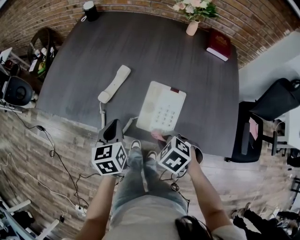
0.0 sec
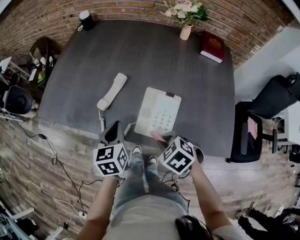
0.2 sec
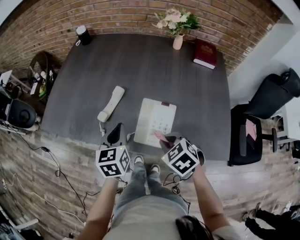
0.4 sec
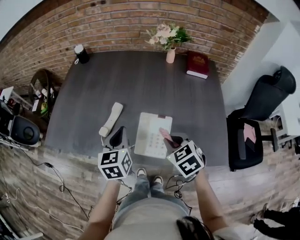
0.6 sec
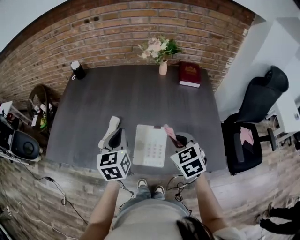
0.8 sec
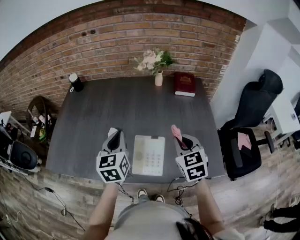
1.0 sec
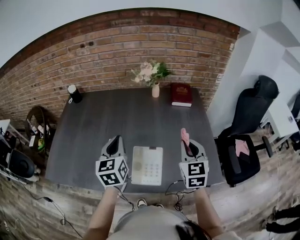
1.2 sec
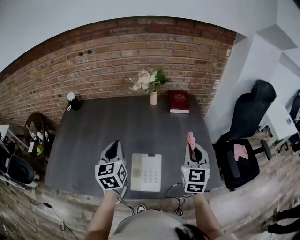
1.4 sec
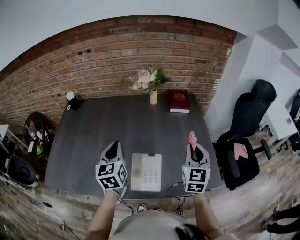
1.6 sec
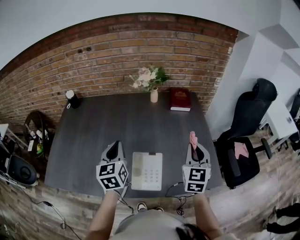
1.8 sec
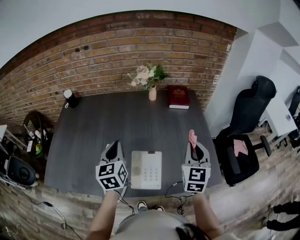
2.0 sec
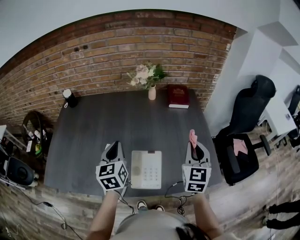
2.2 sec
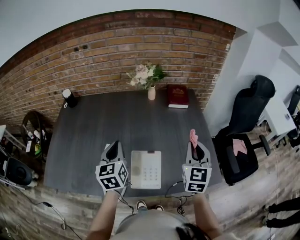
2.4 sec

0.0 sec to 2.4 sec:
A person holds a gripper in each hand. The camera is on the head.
0.0 sec to 1.2 sec: The grippers both shift upward by roughly 20 cm. The left gripper changes its angle by roughly 30 degrees. The right gripper tips its fingers upward by roughly 60 degrees.
1.2 sec to 2.4 sec: The grippers stay close to where they were, moving slightly.

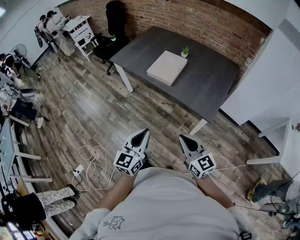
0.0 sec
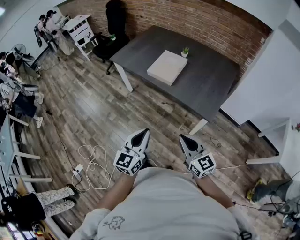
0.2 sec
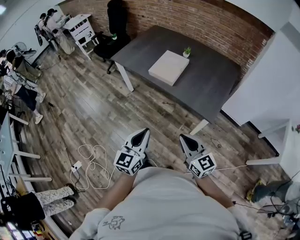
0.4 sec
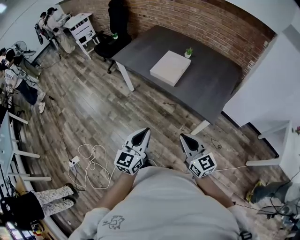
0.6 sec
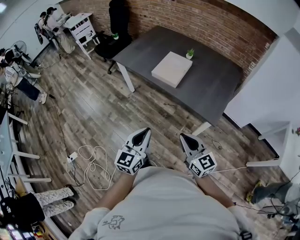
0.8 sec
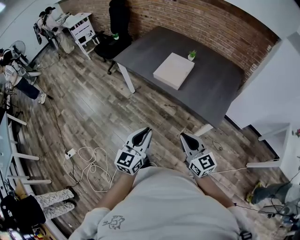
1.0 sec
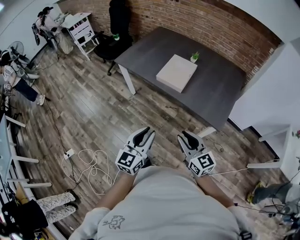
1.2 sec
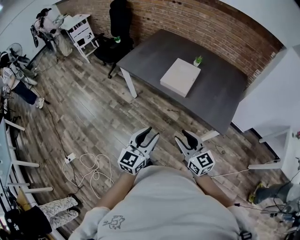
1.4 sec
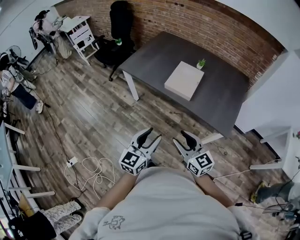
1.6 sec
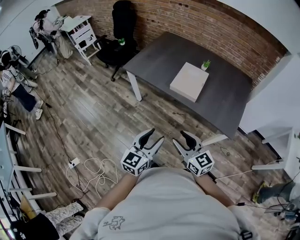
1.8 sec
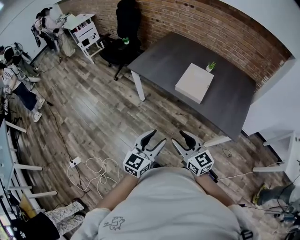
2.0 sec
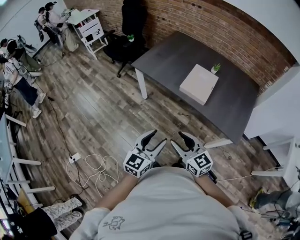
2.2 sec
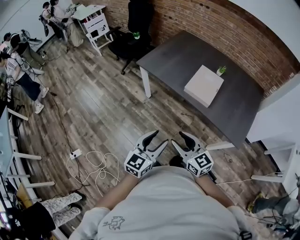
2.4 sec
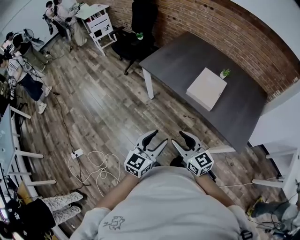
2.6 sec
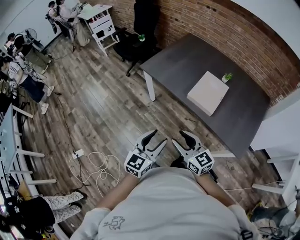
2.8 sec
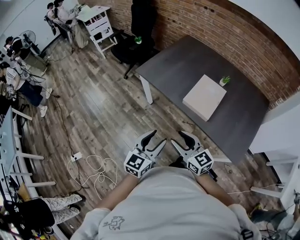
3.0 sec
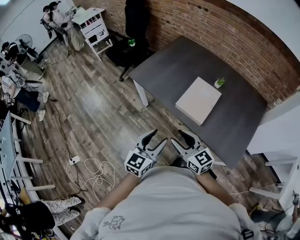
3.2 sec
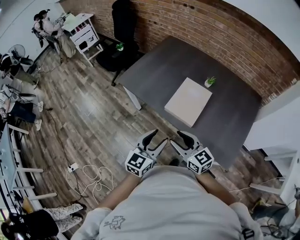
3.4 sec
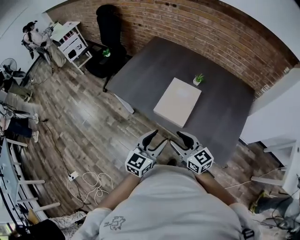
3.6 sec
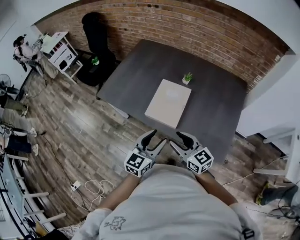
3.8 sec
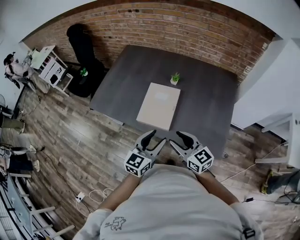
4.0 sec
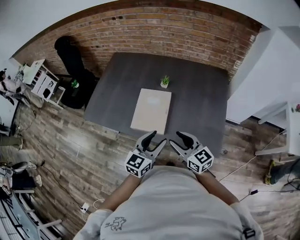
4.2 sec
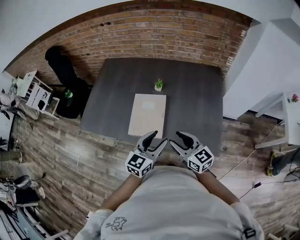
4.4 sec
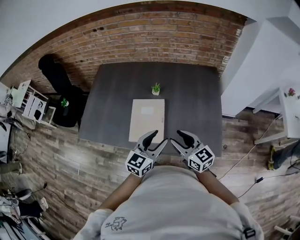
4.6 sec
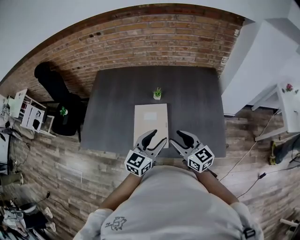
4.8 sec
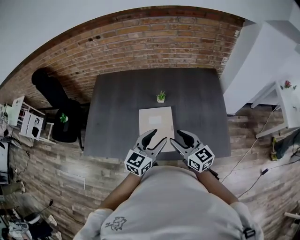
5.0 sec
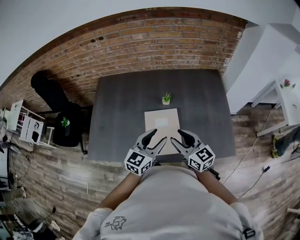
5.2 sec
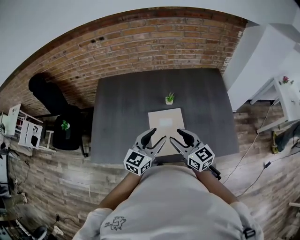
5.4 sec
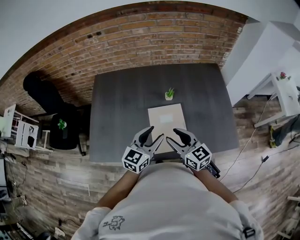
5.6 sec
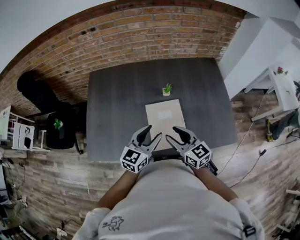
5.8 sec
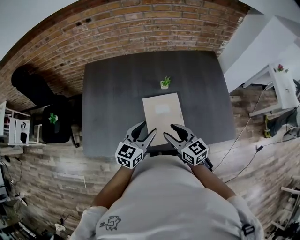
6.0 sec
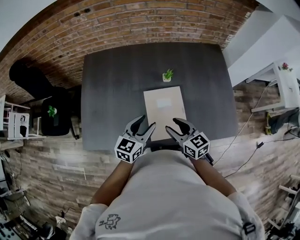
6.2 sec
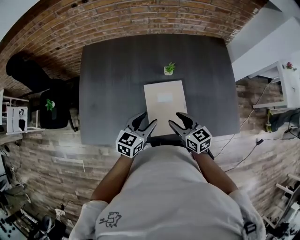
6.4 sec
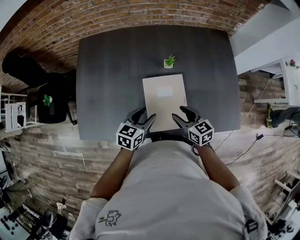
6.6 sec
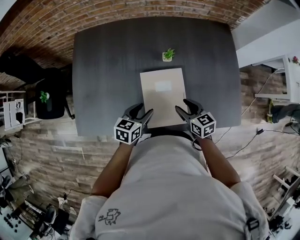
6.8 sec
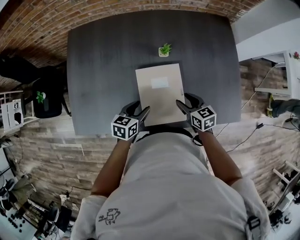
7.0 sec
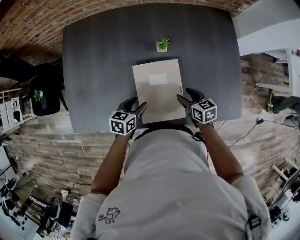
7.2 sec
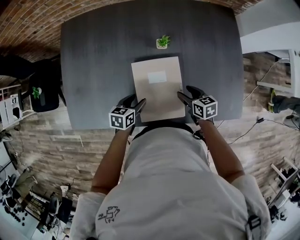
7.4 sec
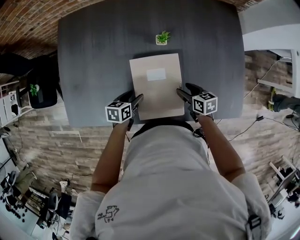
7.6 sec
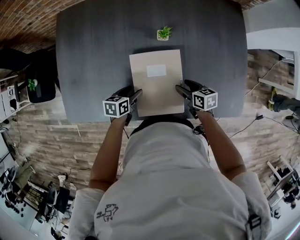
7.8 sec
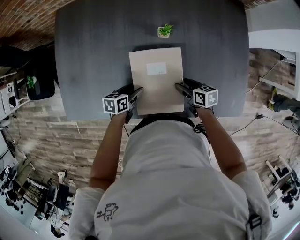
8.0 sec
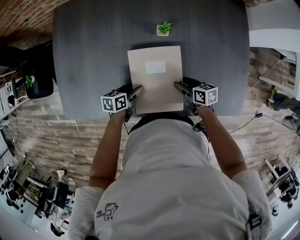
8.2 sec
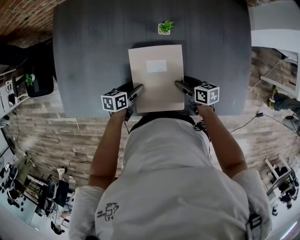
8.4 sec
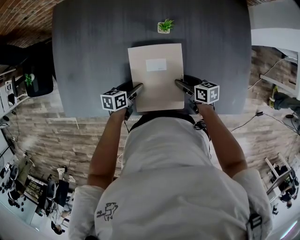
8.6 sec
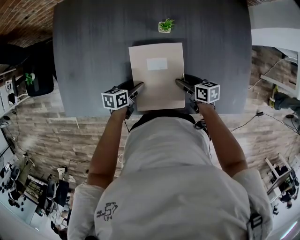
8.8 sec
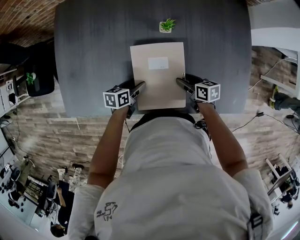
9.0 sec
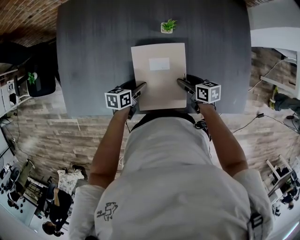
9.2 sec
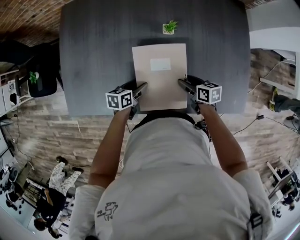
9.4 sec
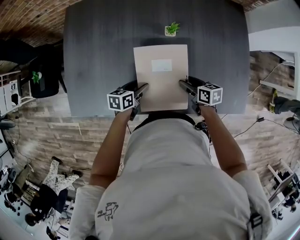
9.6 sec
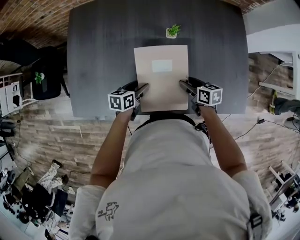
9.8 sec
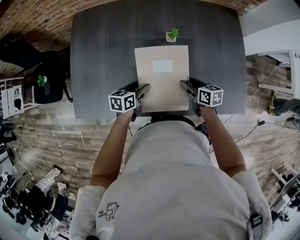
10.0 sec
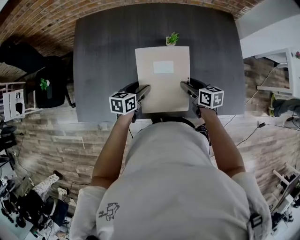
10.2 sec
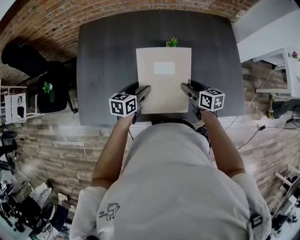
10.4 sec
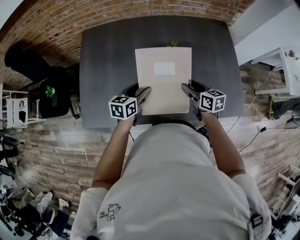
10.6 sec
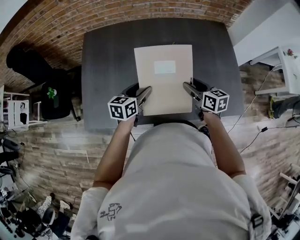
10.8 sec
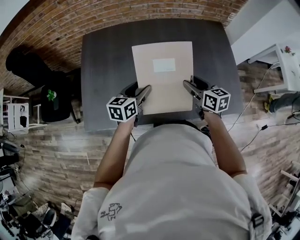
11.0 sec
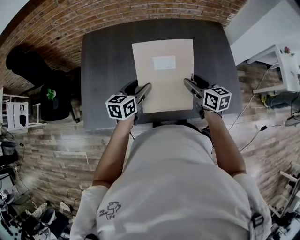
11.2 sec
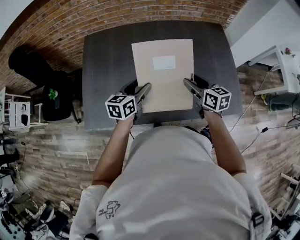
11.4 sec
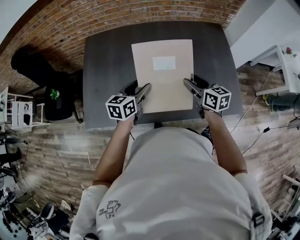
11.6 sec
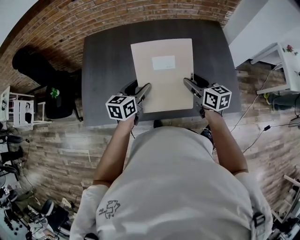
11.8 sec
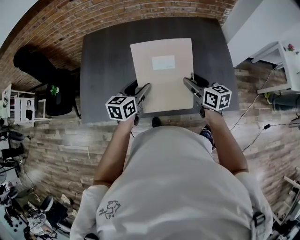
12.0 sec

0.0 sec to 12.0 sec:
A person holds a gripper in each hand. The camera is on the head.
0.0 sec to 1.6 sec: Both grippers move to the left and forward, approximately 20 cm. The left gripper opens, while the right gripper opens up.
1.6 sec to 3.0 sec: The right gripper is displaced forward and to the left by roughly 15 cm. The left gripper travels forward by roughly 15 cm.
3.0 sec to 4.4 sec: The left gripper ends up some 35 cm from where it was, and turns by approximately 30 degrees. Meanwhile the right gripper shifts by roughly 30 cm, and rotates roughly 30 degrees.
4.4 sec to 6.0 sec: The grippers both shift to the left and forward by roughly 25 cm.
6.0 sec to 7.6 sec: The right gripper goes approximately 25 cm downward and to the right, and rotates some 40 degrees. Meanwhile the left gripper travels downward by some 25 cm, and angles its fingers downward, by some 30 degrees.
7.6 sec to 9.0 sec: The grippers make only small movements.
9.0 sec to 10.4 sec: Both grippers travel together upward, approximately 15 cm. The left gripper turns by approximately 20 degrees.
10.4 sec to 12.0 sec: Both grippers travel together upward and to the right, about 15 cm.

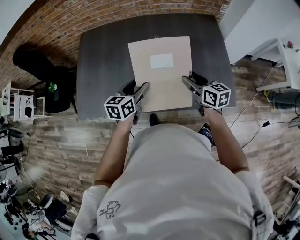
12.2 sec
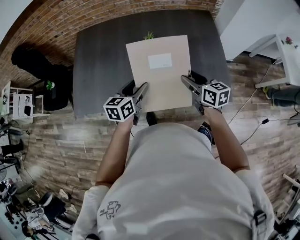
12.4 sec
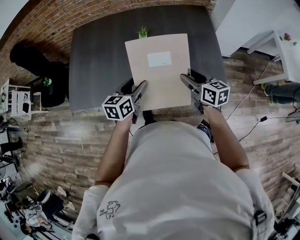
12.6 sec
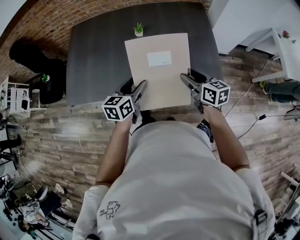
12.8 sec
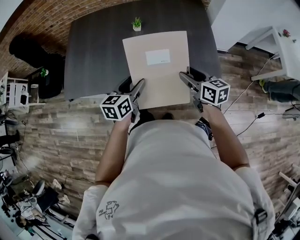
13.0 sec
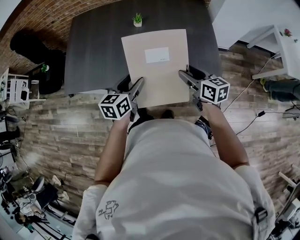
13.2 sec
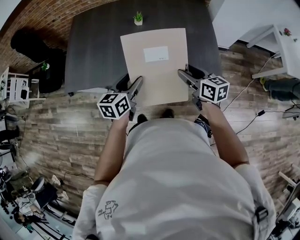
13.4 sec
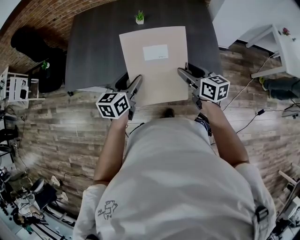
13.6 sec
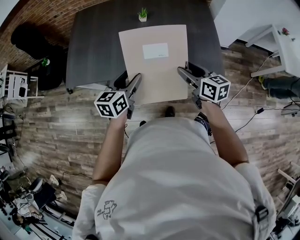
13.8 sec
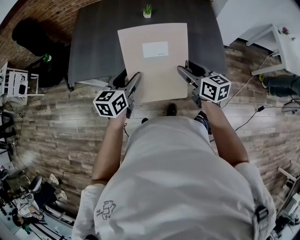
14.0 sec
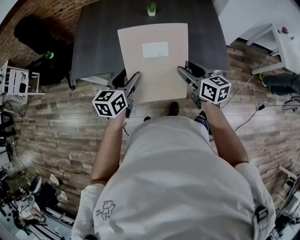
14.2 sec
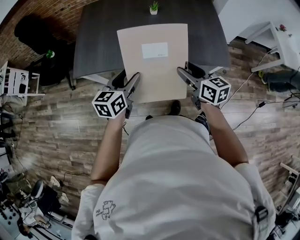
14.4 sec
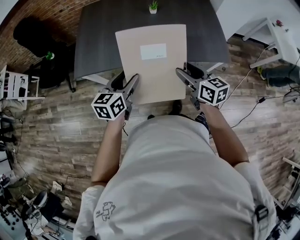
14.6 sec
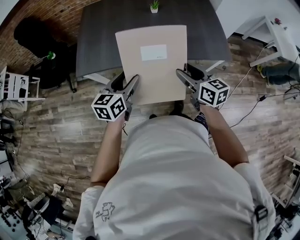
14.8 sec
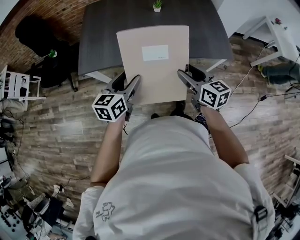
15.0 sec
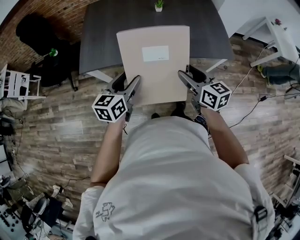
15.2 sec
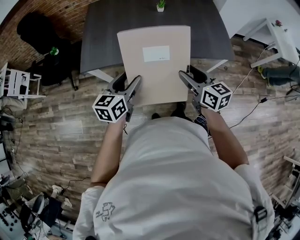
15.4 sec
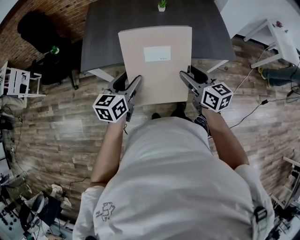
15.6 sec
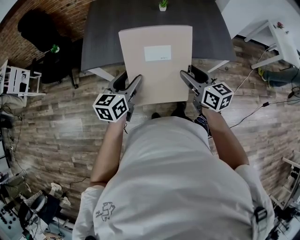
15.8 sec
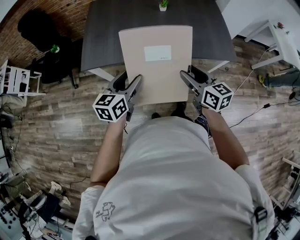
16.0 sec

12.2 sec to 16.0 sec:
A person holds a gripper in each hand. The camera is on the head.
12.2 sec to 13.4 sec: Both grippers travel together backward and to the right, some 15 cm.
13.4 sec to 14.8 sec: The grippers both shift to the left and backward by about 25 cm.
14.8 sec to 16.0 sec: The grippers make only small movements.

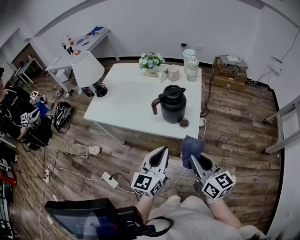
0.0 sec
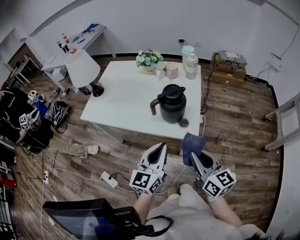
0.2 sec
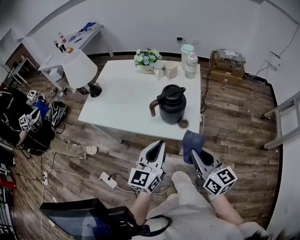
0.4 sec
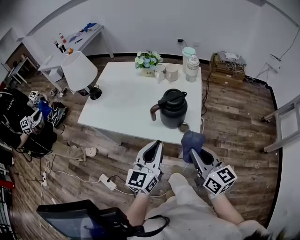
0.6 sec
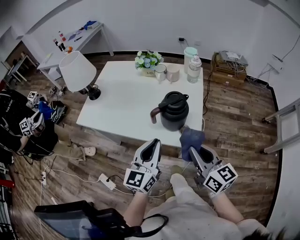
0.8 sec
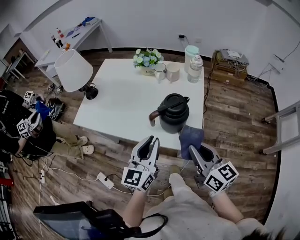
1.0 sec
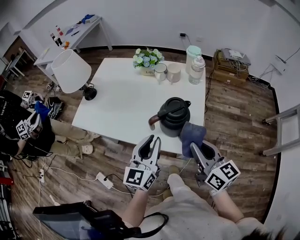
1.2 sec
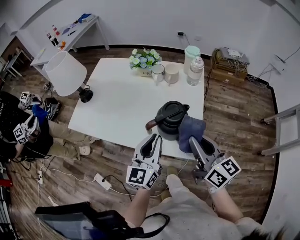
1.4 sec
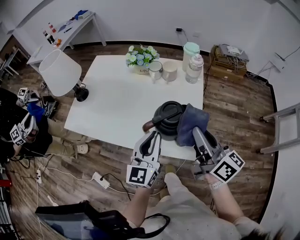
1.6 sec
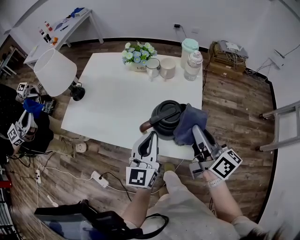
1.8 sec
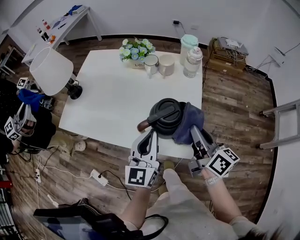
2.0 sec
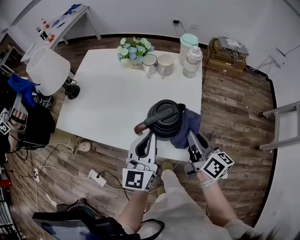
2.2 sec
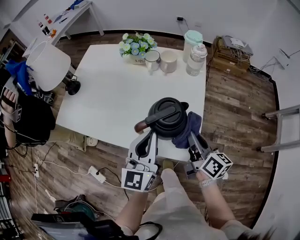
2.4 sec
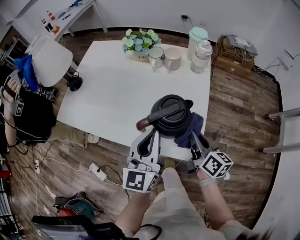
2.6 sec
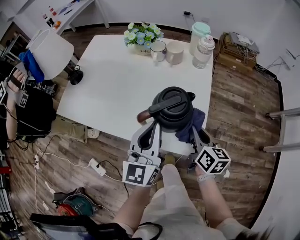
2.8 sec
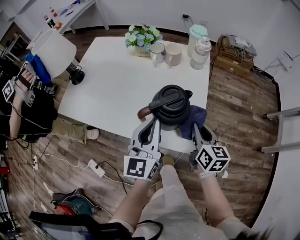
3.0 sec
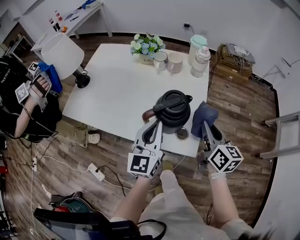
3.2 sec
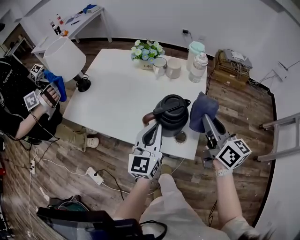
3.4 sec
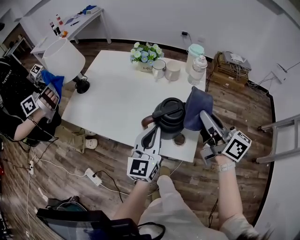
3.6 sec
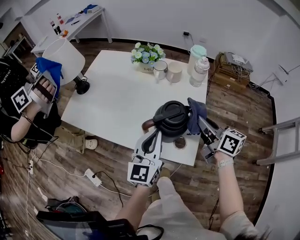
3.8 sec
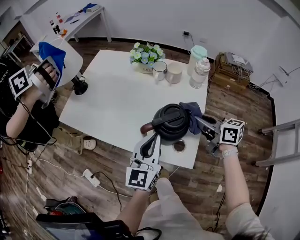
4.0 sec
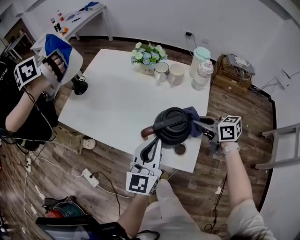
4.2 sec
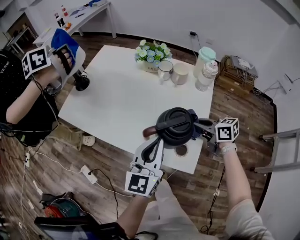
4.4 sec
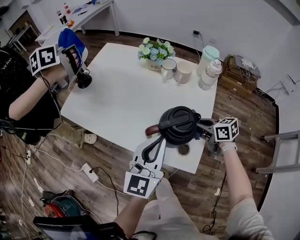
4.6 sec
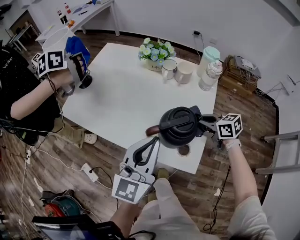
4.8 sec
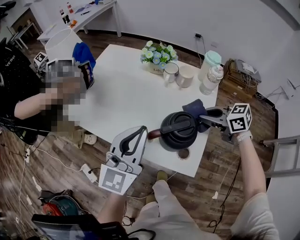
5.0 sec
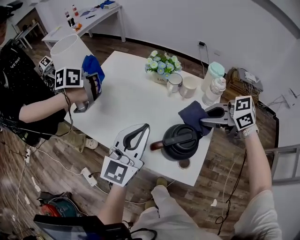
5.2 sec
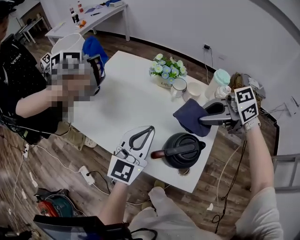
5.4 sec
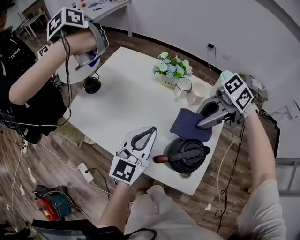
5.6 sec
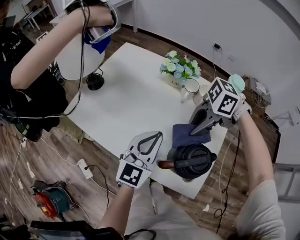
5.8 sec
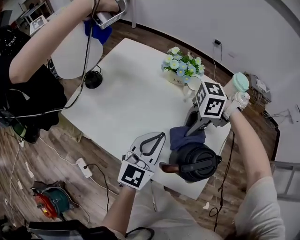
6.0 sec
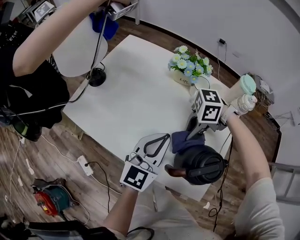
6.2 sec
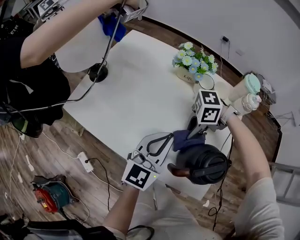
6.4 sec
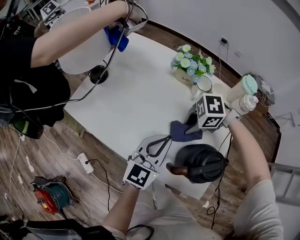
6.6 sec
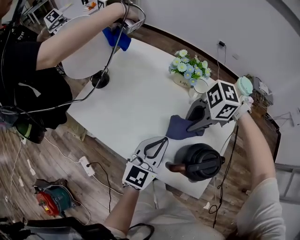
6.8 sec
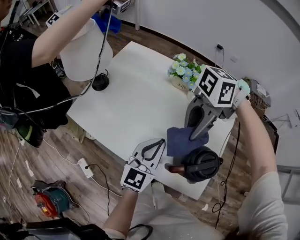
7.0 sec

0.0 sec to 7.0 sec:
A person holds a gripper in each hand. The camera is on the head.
0.0 sec to 1.4 sec: The two grippers go approximately 20 cm forward.
1.4 sec to 2.8 sec: The right gripper travels downward by approximately 20 cm, and rotates approximately 20 degrees.
2.8 sec to 4.2 sec: The right gripper travels forward by about 10 cm, moves approximately 20 cm upward and comes back, and swivels some 50 degrees.
4.2 sec to 5.6 sec: The left gripper ends up roughly 15 cm from where it was, while the right gripper goes roughly 10 cm upward, and changes its angle by about 60 degrees.
5.6 sec to 7.0 sec: The left gripper is displaced downward by roughly 5 cm. The right gripper reaches some 20 cm downward, then returns, and changes its angle by approximately 30 degrees.
